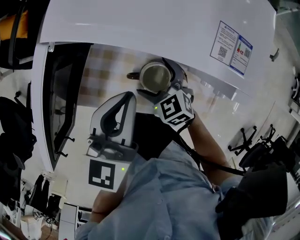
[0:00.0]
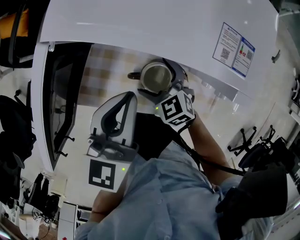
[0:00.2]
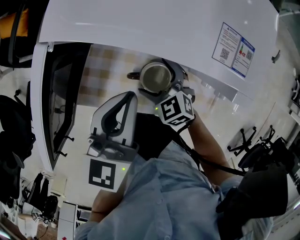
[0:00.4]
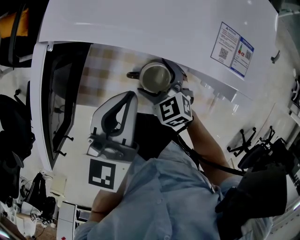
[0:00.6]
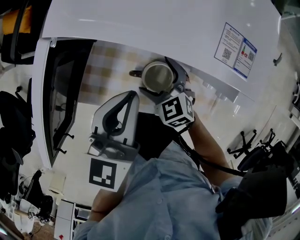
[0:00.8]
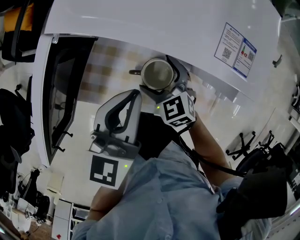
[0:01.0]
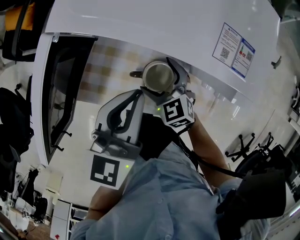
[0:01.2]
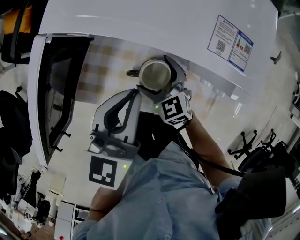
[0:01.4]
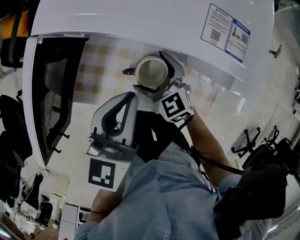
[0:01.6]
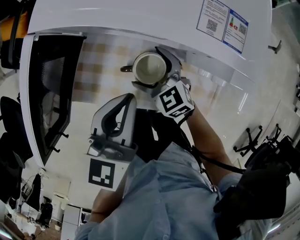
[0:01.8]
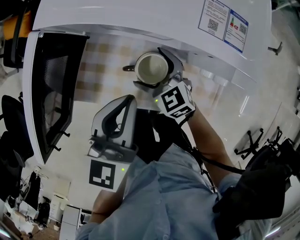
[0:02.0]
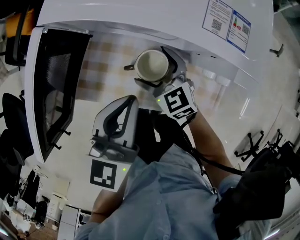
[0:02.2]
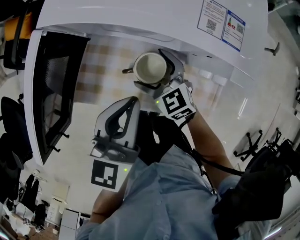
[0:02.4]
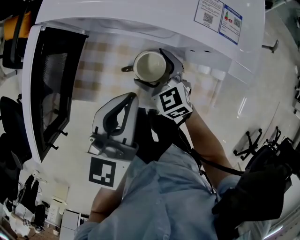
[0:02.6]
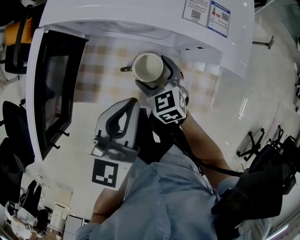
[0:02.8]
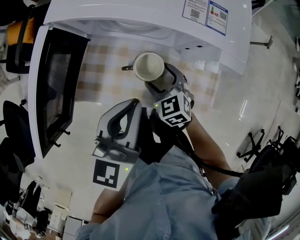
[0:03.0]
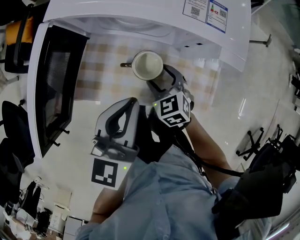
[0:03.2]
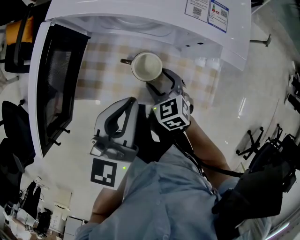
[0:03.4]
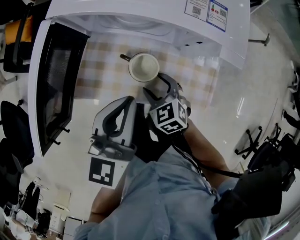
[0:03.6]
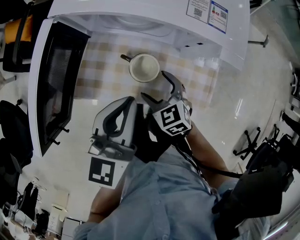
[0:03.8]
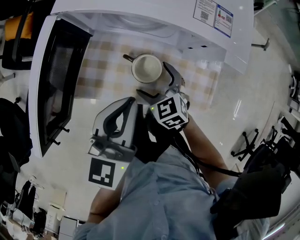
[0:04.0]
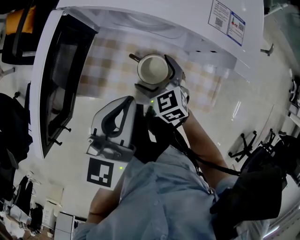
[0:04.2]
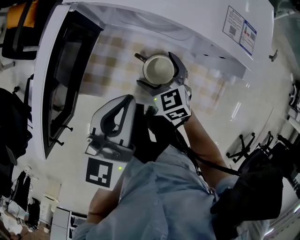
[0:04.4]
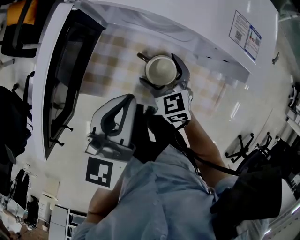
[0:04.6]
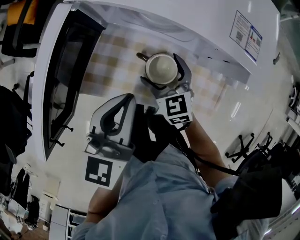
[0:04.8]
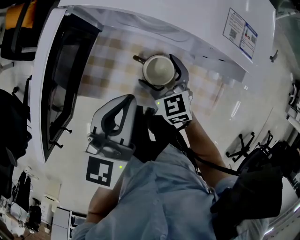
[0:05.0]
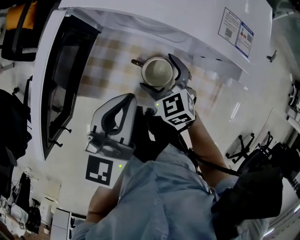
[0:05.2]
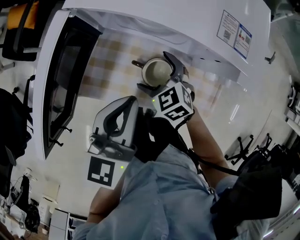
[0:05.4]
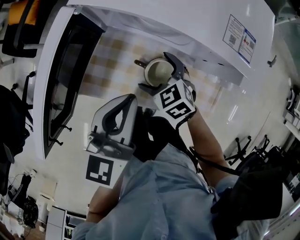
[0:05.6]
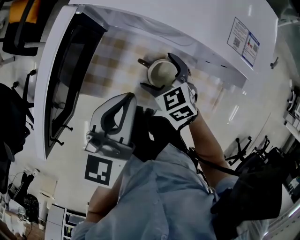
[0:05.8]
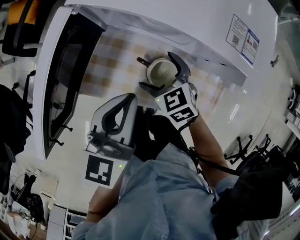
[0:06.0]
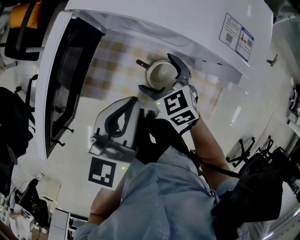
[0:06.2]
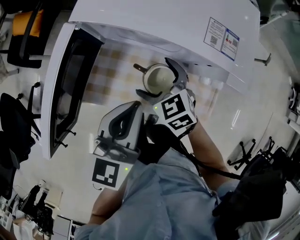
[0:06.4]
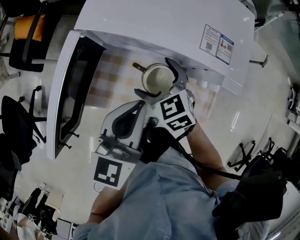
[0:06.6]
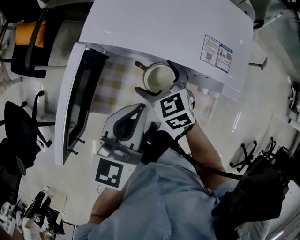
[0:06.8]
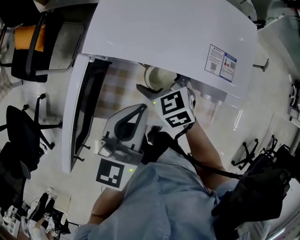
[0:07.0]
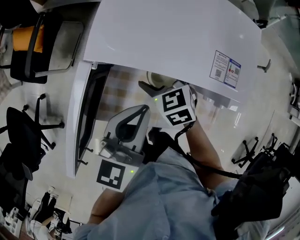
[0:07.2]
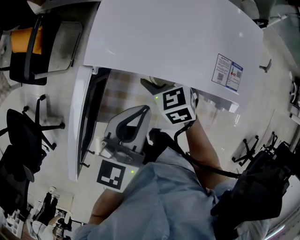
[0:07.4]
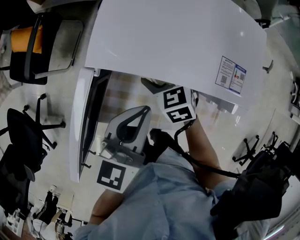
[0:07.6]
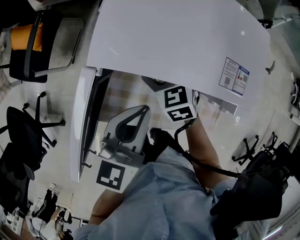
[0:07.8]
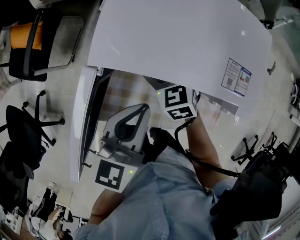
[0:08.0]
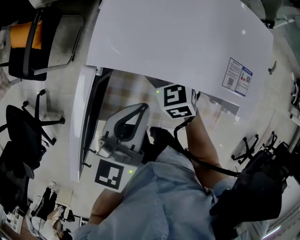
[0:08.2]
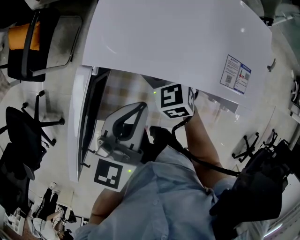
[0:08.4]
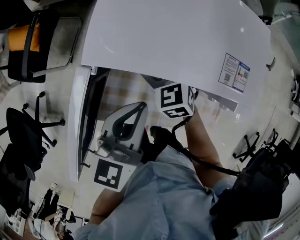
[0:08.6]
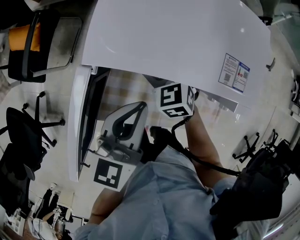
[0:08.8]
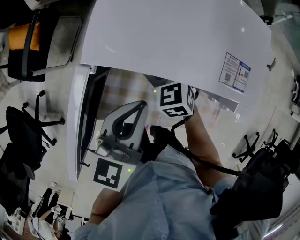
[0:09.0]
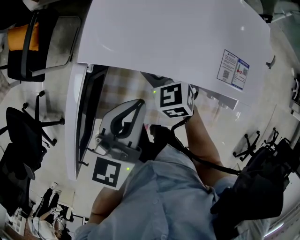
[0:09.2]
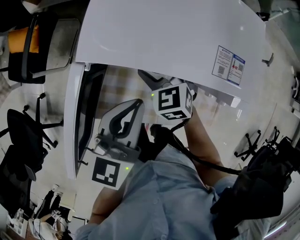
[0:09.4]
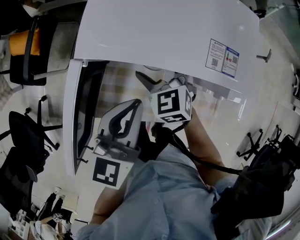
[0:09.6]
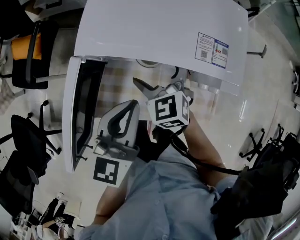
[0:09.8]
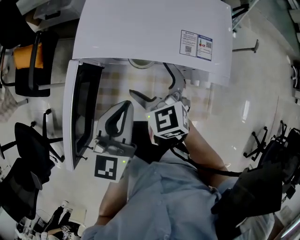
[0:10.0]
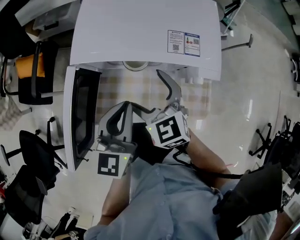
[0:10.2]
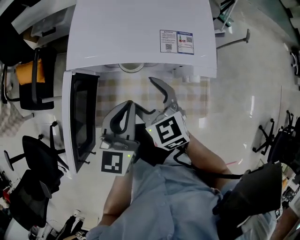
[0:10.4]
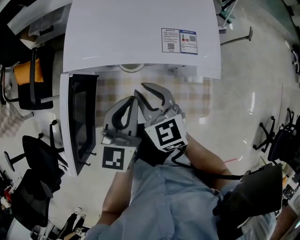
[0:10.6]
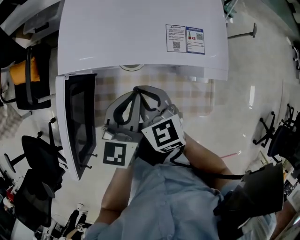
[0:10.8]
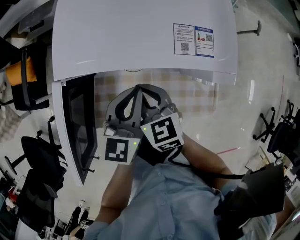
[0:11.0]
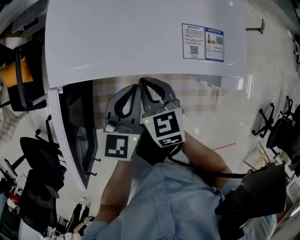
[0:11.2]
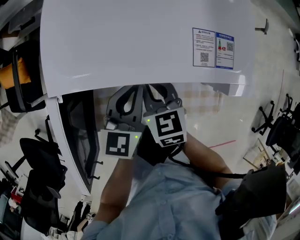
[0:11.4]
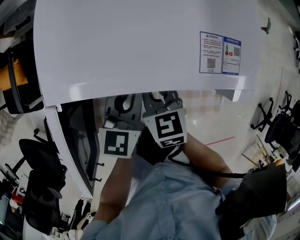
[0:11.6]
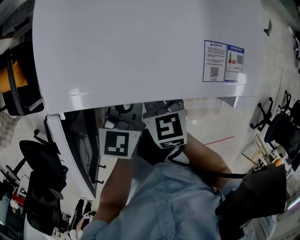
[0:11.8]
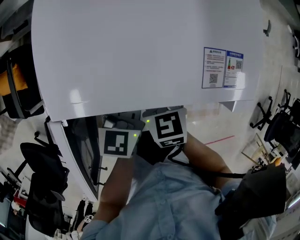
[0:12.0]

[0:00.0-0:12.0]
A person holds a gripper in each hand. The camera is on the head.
0:00.0 to 0:01.6: There are only small adjustments of the grippers.
0:01.6 to 0:03.0: The left gripper is displaced backward by about 5 cm; the right gripper moves about 5 cm.
0:03.0 to 0:04.4: Both grippers travel together to the left, approximately 5 cm. The right gripper opens up.
0:04.4 to 0:06.0: The grippers stay close to where they were, moving slightly.
0:06.0 to 0:07.6: The right gripper moves forward and upward, about 15 cm, while the left gripper is displaced forward by some 5 cm.
0:07.6 to 0:09.0: The grippers move only a little.
0:09.0 to 0:10.4: The left gripper ends up about 5 cm from where it was, while the right gripper goes approximately 15 cm backward and upward, and rotates roughly 20 degrees.
0:10.4 to 0:12.0: The two grippers go some 15 cm downward and forward. The right gripper rotates about 20 degrees, and closes its fingers.

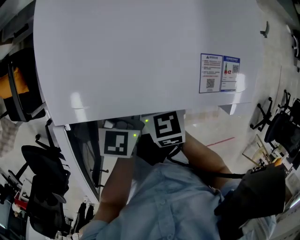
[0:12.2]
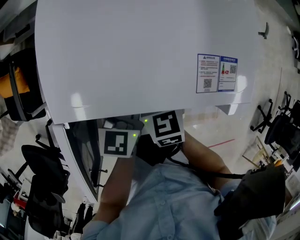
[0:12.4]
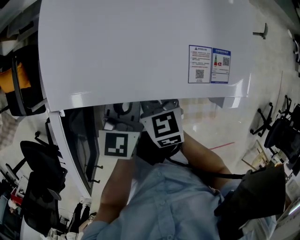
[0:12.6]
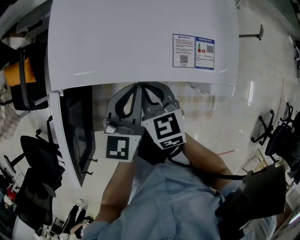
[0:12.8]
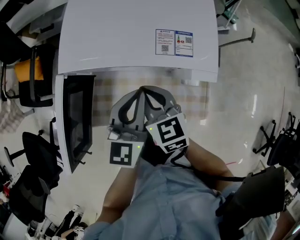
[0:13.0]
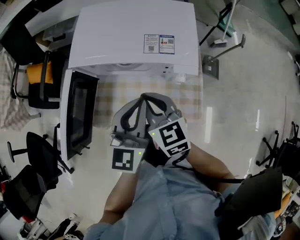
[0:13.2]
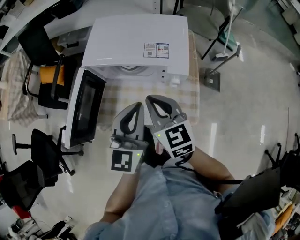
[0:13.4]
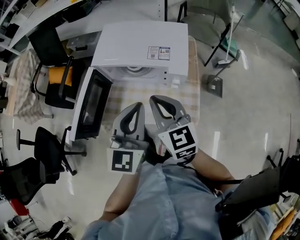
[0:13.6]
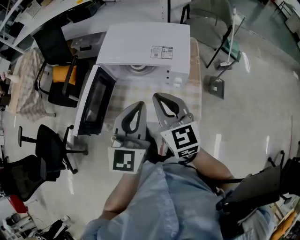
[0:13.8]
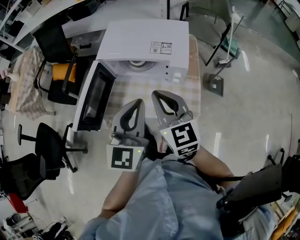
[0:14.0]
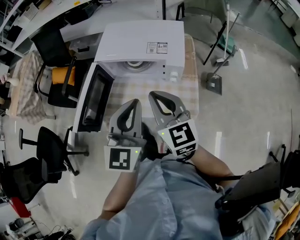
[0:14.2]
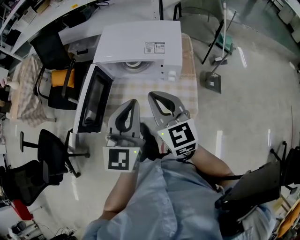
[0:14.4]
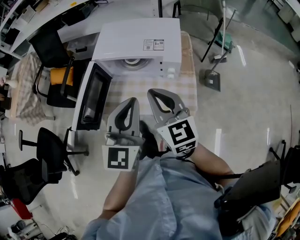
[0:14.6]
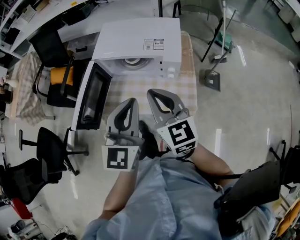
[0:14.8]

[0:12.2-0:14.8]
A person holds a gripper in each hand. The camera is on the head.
0:12.2 to 0:13.4: The left gripper moves upward and backward, roughly 30 cm, and changes its angle by approximately 30 degrees; the right gripper goes about 30 cm upward, backward and to the right, and rotates approximately 30 degrees.
0:13.4 to 0:14.8: Both grippers travel together backward and upward, approximately 10 cm.

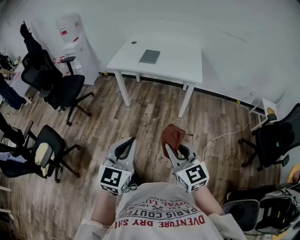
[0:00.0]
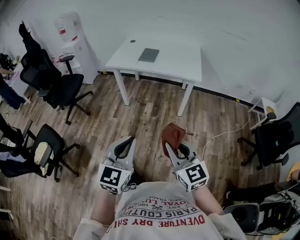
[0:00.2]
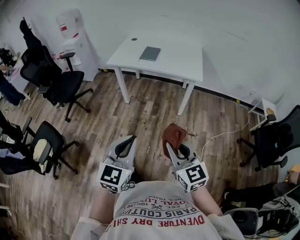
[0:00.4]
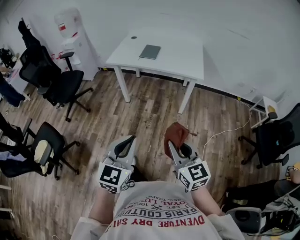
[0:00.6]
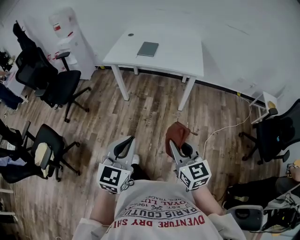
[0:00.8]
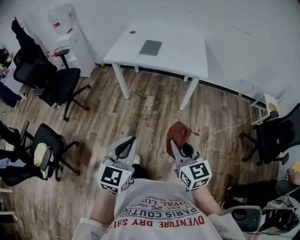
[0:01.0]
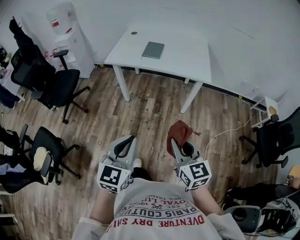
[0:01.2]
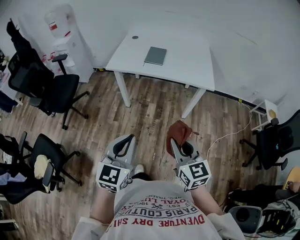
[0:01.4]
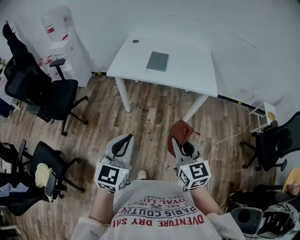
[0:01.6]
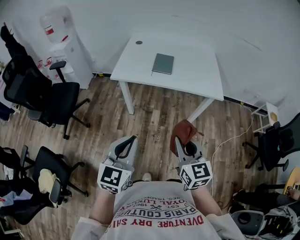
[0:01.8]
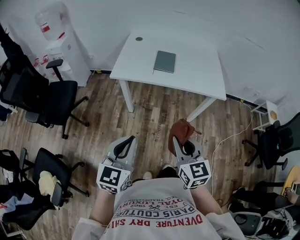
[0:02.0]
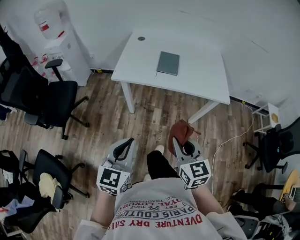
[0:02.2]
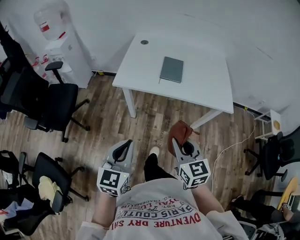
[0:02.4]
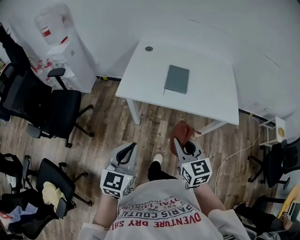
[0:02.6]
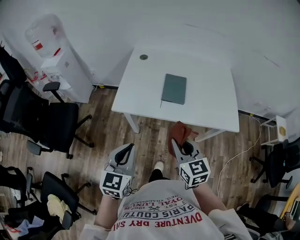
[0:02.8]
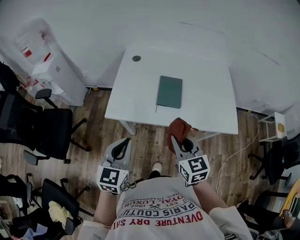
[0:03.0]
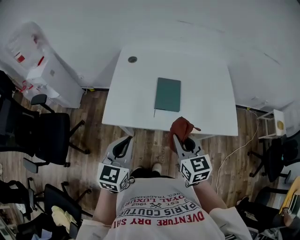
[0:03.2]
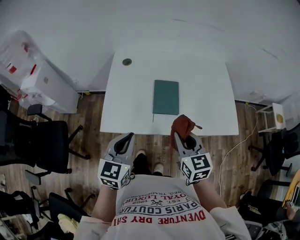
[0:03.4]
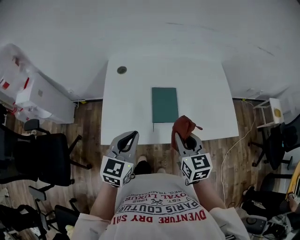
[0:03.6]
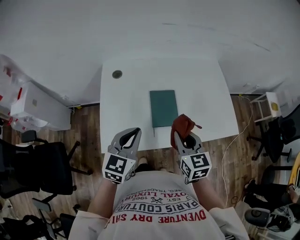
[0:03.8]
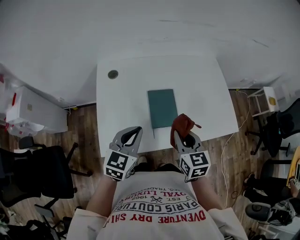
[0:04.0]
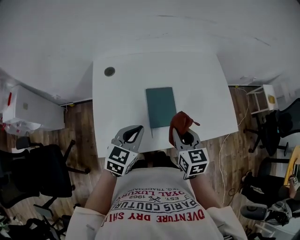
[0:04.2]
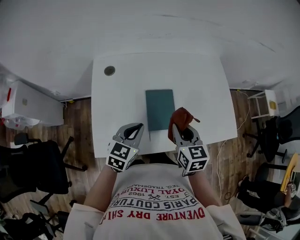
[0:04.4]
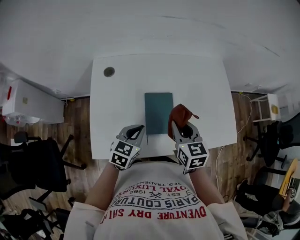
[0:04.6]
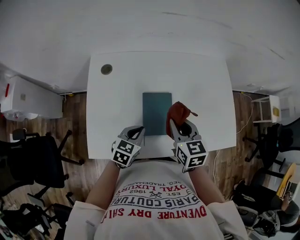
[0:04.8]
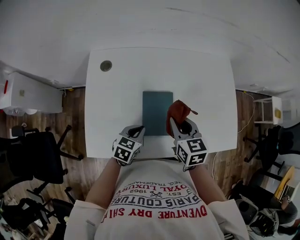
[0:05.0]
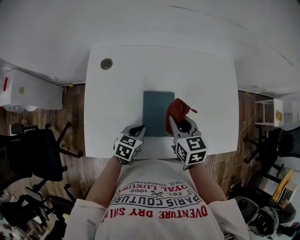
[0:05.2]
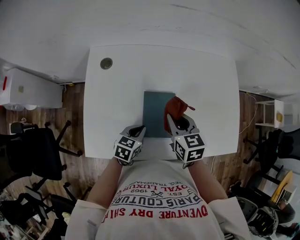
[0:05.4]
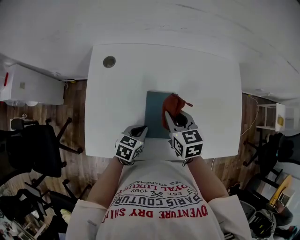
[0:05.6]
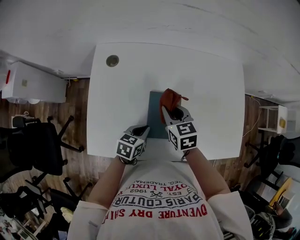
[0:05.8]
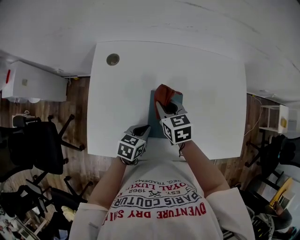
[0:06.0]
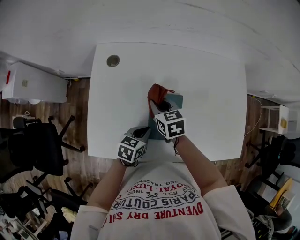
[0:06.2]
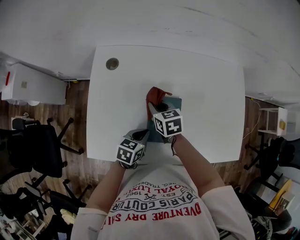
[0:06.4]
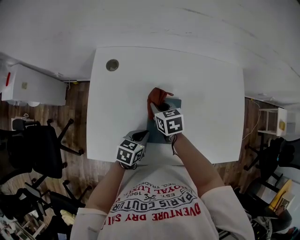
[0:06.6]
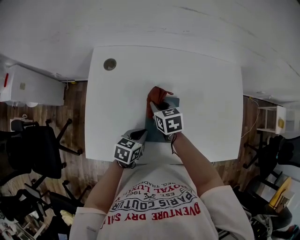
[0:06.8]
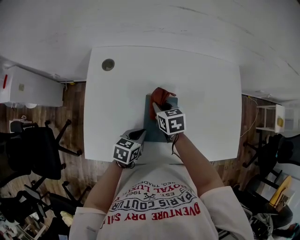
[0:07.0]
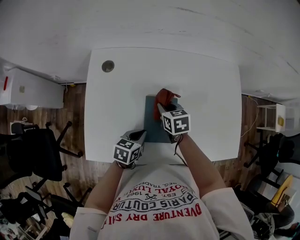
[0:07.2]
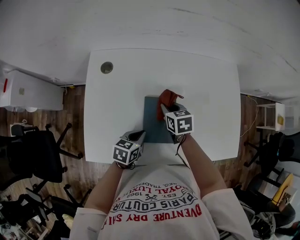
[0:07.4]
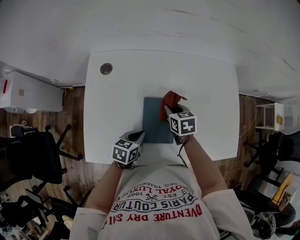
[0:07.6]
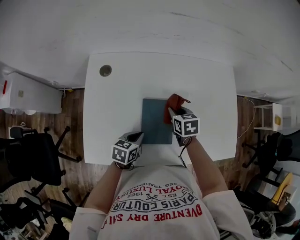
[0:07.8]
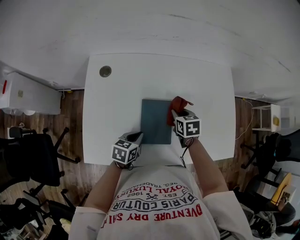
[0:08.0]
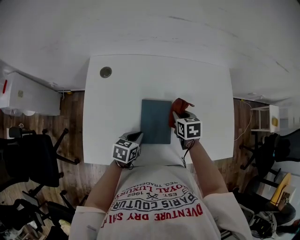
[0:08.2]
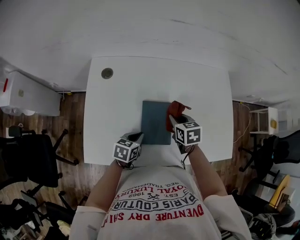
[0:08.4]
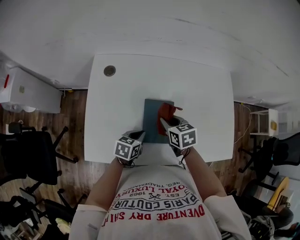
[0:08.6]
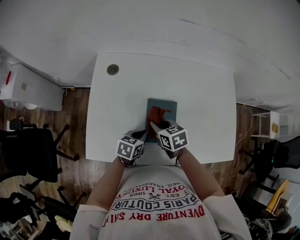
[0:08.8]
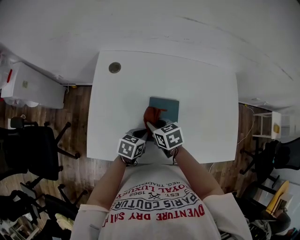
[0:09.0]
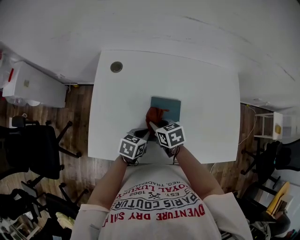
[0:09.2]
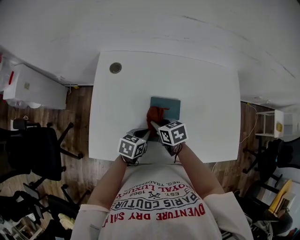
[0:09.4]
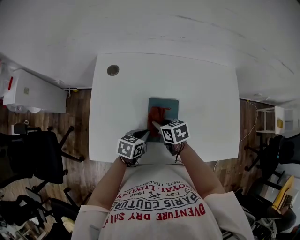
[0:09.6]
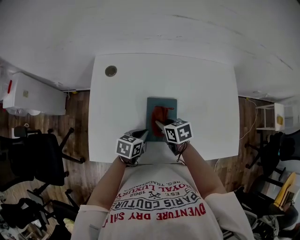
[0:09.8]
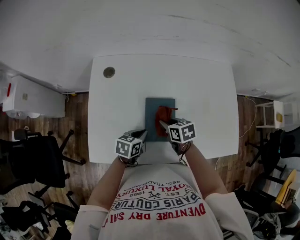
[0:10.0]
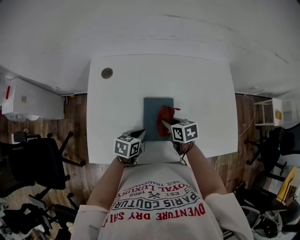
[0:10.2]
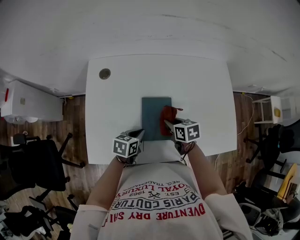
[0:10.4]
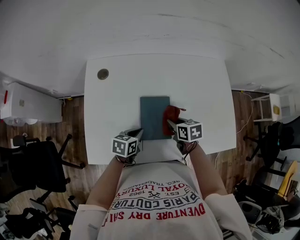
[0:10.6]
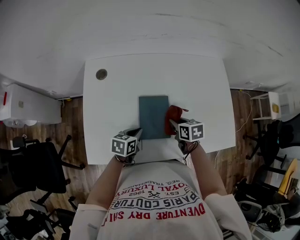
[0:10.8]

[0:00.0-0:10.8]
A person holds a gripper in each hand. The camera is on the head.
0:00.0 to 0:01.6: Both grippers travel together forward and to the left, approximately 25 cm.
0:01.6 to 0:03.0: The pair of grippers is taken forward, some 40 cm.
0:03.0 to 0:04.6: The right gripper moves roughly 30 cm, and turns by some 20 degrees; the left gripper ends up about 35 cm from where it was, and swivels approximately 30 degrees.
0:04.6 to 0:06.2: The left gripper travels downward by roughly 10 cm, and rotates roughly 20 degrees; the right gripper is displaced to the left, downward and forward by roughly 20 cm, and changes its angle by some 20 degrees.
0:06.2 to 0:07.8: The right gripper heads to the right, covering roughly 10 cm.
0:07.8 to 0:09.2: The right gripper goes roughly 15 cm to the left and backward.
0:09.2 to 0:10.8: The right gripper shifts approximately 15 cm to the right, and turns by roughly 20 degrees.
